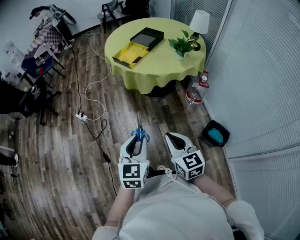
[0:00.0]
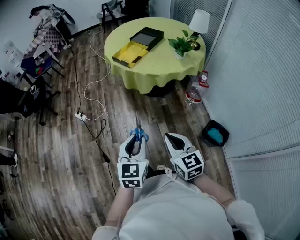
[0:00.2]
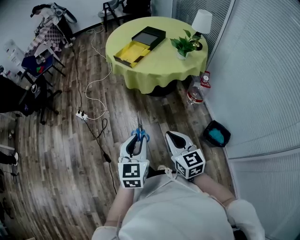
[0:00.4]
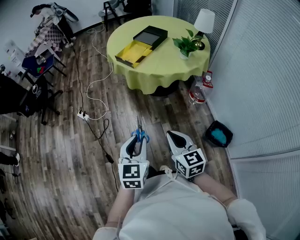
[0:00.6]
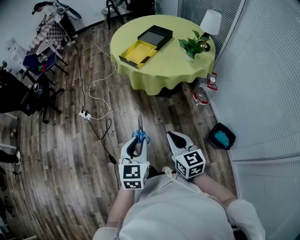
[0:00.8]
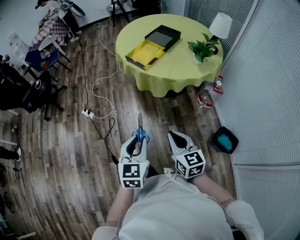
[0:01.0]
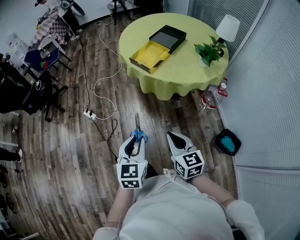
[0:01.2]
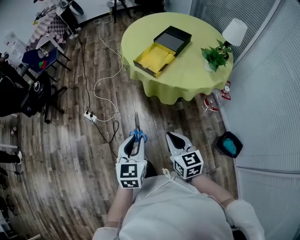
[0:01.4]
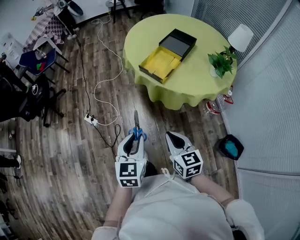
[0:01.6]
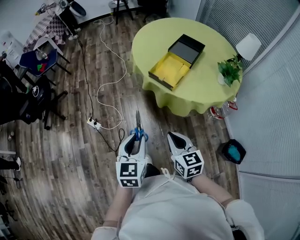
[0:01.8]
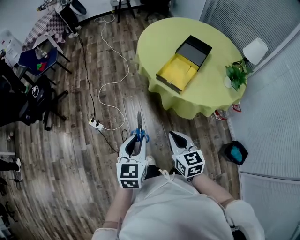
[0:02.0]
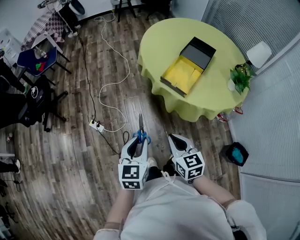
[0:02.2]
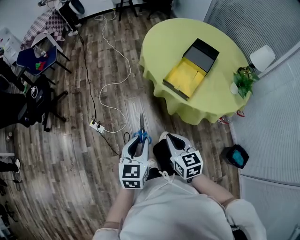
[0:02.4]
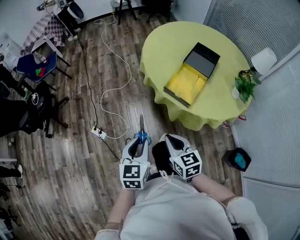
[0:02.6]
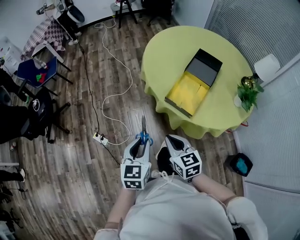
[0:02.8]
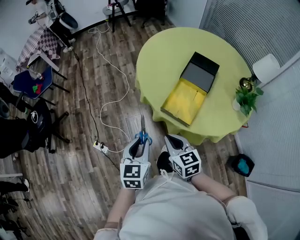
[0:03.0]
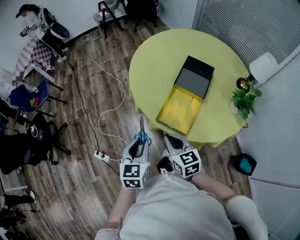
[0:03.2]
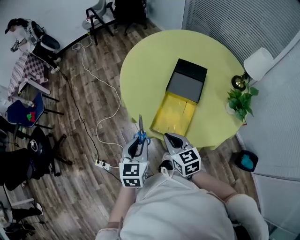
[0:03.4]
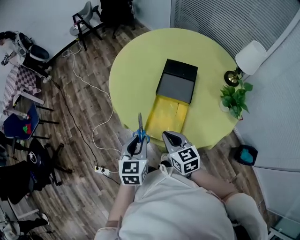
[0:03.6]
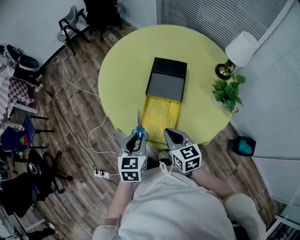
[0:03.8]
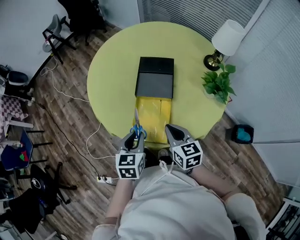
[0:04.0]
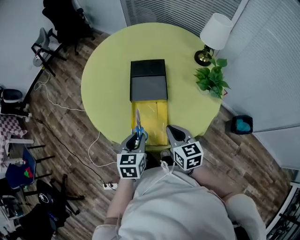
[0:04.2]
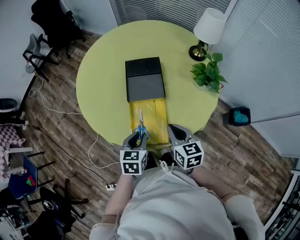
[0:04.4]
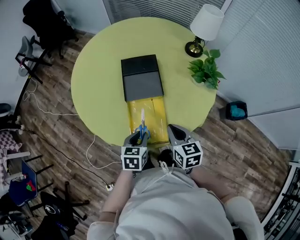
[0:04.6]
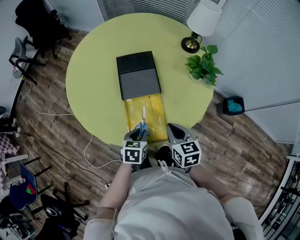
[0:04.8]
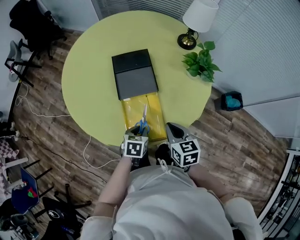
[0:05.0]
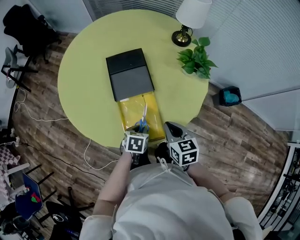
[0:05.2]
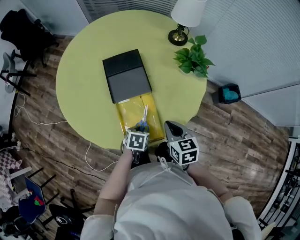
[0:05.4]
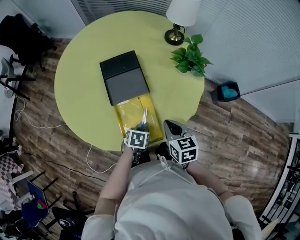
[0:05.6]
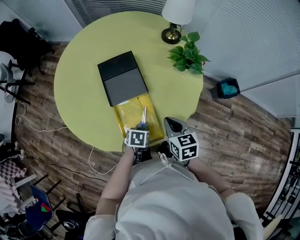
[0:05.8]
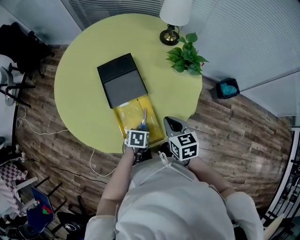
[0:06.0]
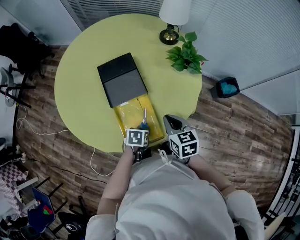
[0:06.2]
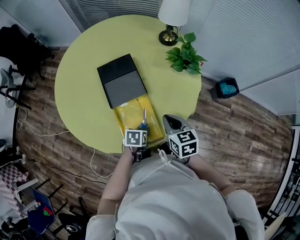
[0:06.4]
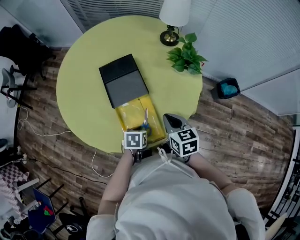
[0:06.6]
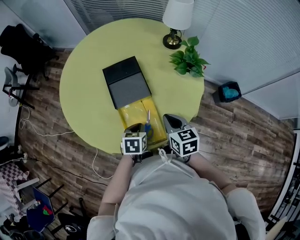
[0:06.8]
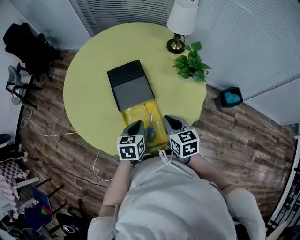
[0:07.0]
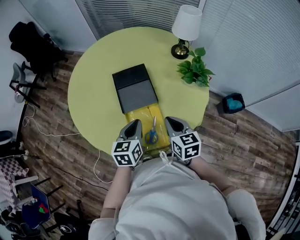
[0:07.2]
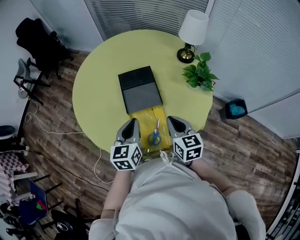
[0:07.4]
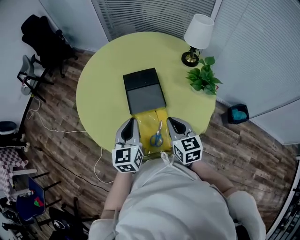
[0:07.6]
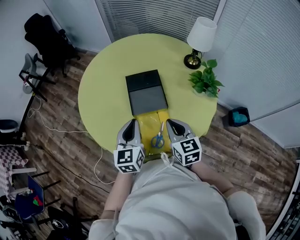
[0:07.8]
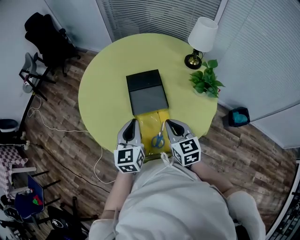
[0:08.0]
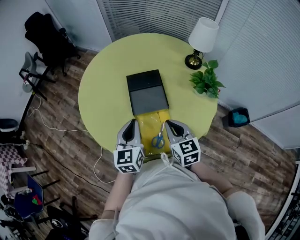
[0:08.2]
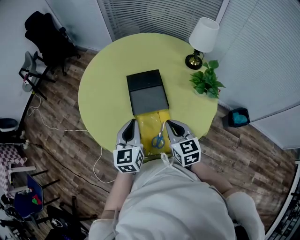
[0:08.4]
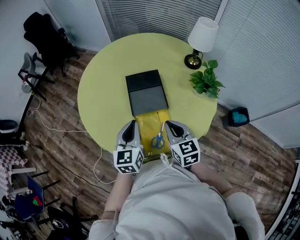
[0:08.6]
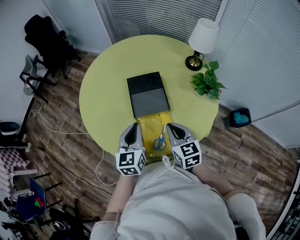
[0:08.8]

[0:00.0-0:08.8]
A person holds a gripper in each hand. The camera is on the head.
0:00.0 to 0:01.4: Both grippers move forward and to the left, approximately 25 cm.
0:01.4 to 0:03.0: The two grippers travel together, forward, roughly 40 cm.
0:03.0 to 0:04.4: The right gripper moves some 25 cm, and changes its angle by roughly 40 degrees, while the left gripper ends up approximately 30 cm from where it was, and rotates about 40 degrees.
0:04.4 to 0:05.8: The right gripper changes place by roughly 5 cm. Meanwhile the left gripper moves downward, approximately 15 cm, and swivels some 40 degrees.
0:05.8 to 0:07.4: The right gripper heads upward, covering some 5 cm. Meanwhile the left gripper is displaced upward by about 25 cm, and tips its fingers upward by approximately 50 degrees.
0:07.4 to 0:08.8: The grippers move only a little.

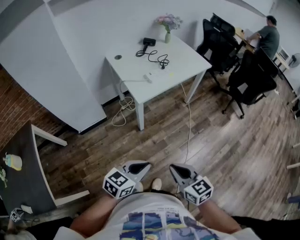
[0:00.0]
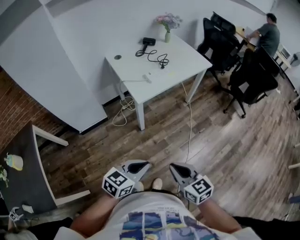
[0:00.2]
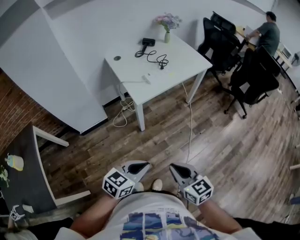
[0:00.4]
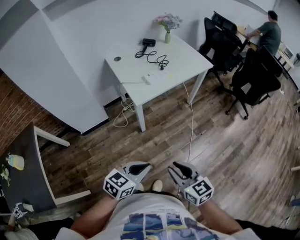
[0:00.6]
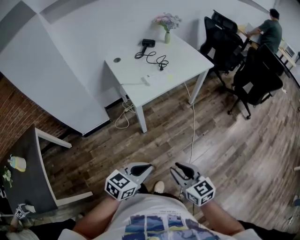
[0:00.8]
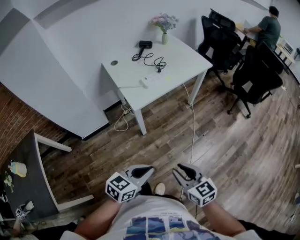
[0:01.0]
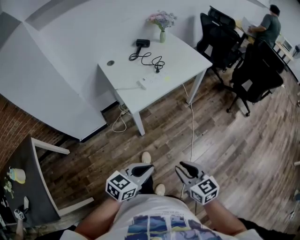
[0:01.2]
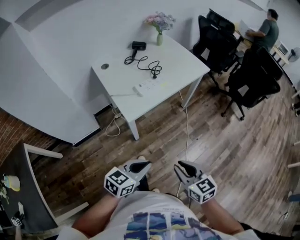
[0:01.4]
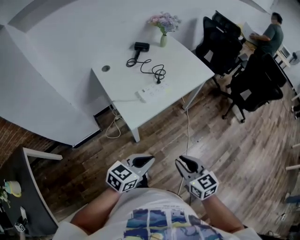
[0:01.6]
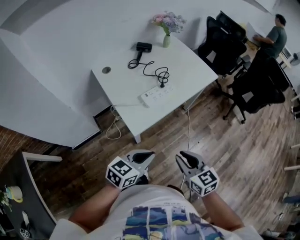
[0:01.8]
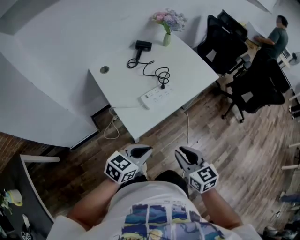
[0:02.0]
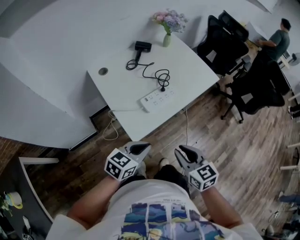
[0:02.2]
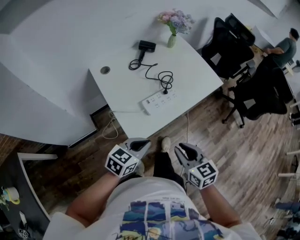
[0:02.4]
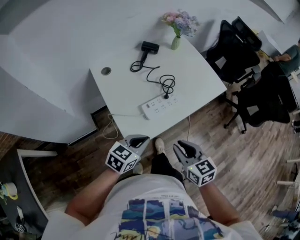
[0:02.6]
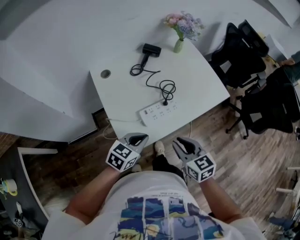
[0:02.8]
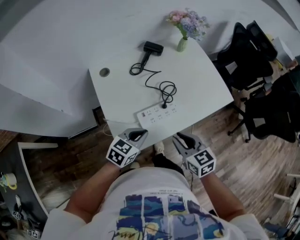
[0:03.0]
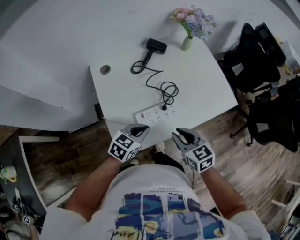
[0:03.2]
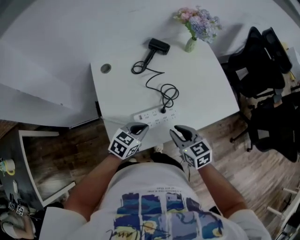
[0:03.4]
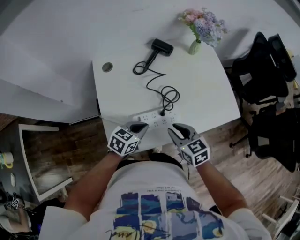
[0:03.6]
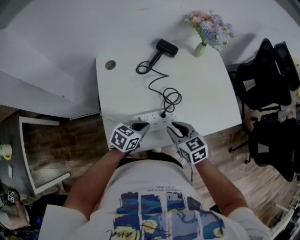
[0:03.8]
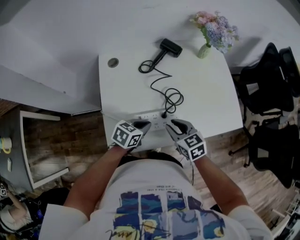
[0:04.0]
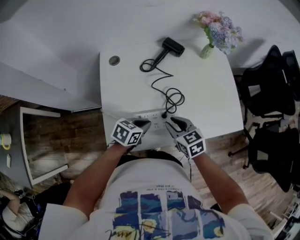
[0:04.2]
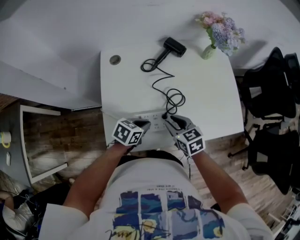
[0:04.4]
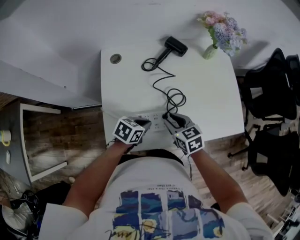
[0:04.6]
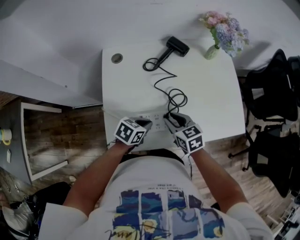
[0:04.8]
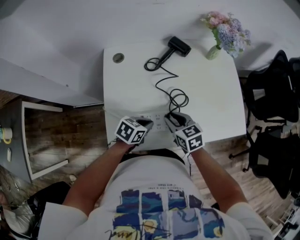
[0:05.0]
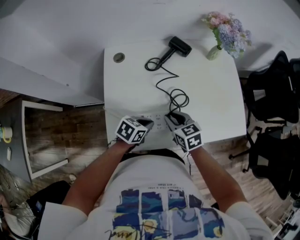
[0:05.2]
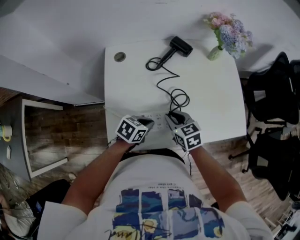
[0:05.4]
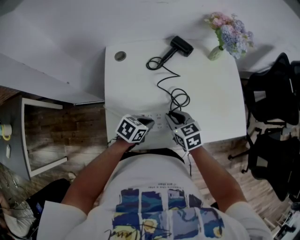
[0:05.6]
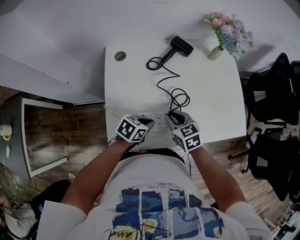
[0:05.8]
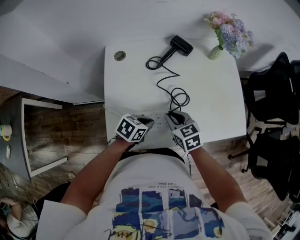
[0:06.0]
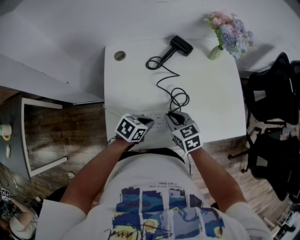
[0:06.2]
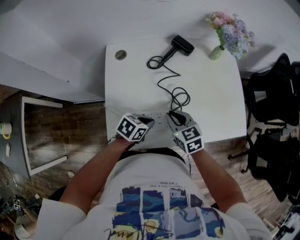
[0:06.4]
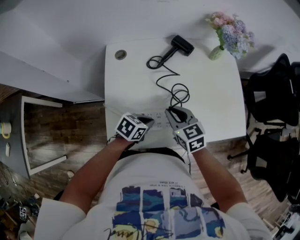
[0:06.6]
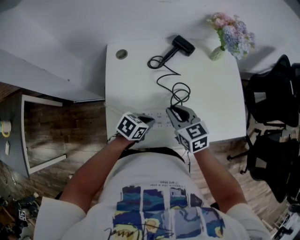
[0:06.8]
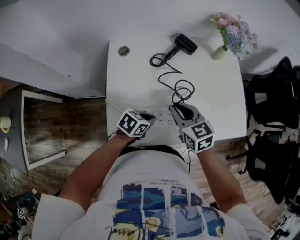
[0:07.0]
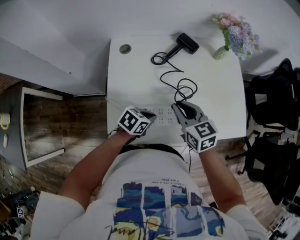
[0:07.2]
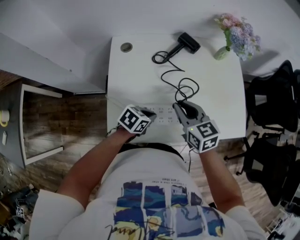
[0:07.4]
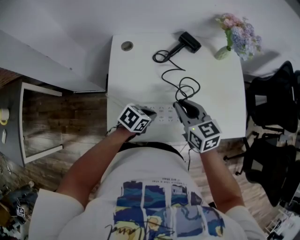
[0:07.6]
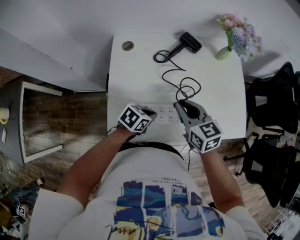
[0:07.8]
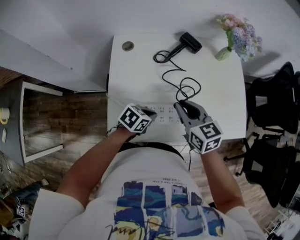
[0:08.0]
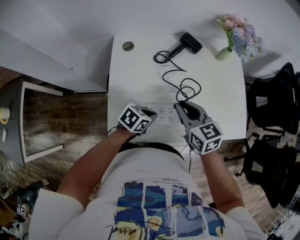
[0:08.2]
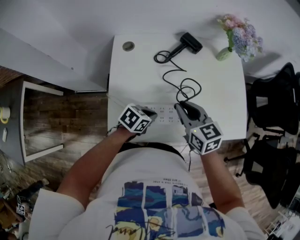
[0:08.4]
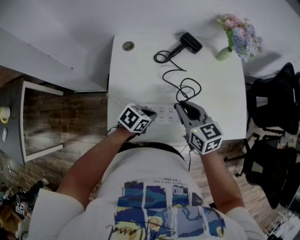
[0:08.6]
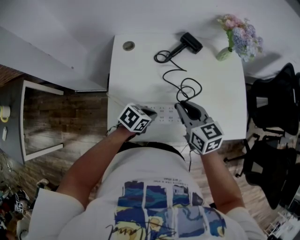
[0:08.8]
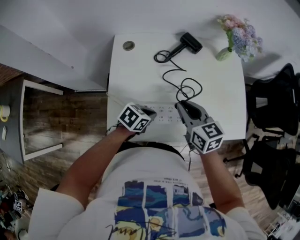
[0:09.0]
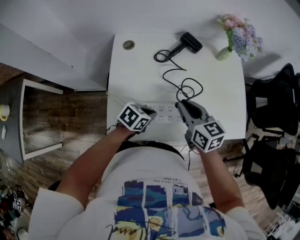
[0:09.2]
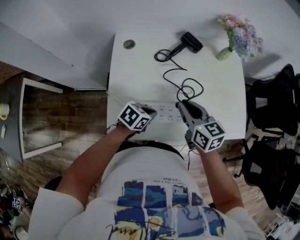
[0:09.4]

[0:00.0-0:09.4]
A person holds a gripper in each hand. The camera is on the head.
0:00.0 to 0:01.6: The two grippers go approximately 25 cm forward.
0:01.6 to 0:03.2: Both grippers move forward, approximately 40 cm. The left gripper rotates about 20 degrees.
0:03.2 to 0:04.8: The left gripper is displaced downward and forward by approximately 10 cm, and changes its angle by roughly 30 degrees. The right gripper travels forward and downward by approximately 15 cm.
0:04.8 to 0:06.2: The grippers make only small movements.
0:06.2 to 0:07.8: The right gripper heads upward, covering approximately 10 cm.
0:07.8 to 0:09.4: The grippers make only small movements.

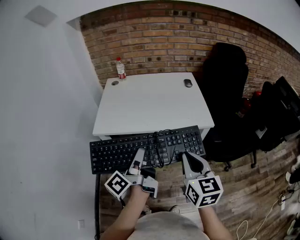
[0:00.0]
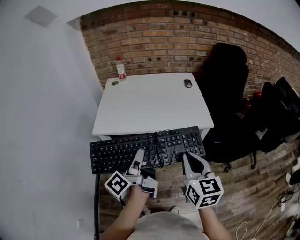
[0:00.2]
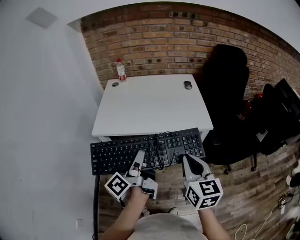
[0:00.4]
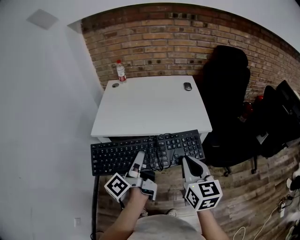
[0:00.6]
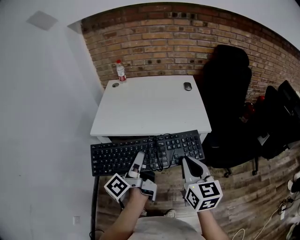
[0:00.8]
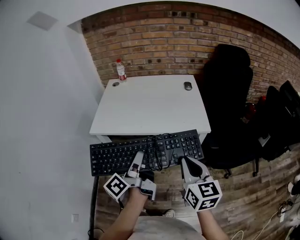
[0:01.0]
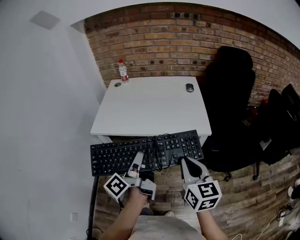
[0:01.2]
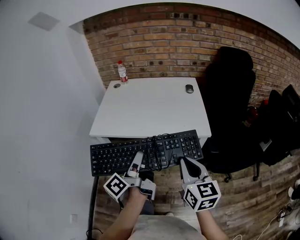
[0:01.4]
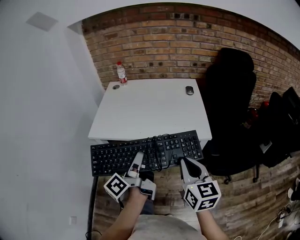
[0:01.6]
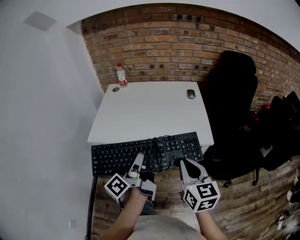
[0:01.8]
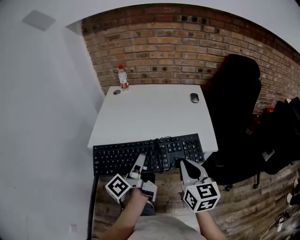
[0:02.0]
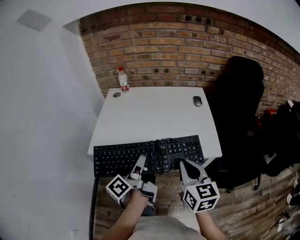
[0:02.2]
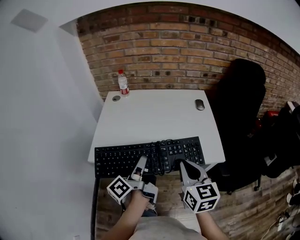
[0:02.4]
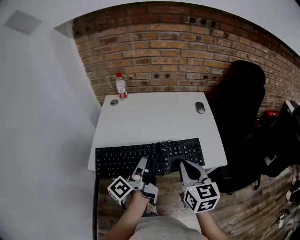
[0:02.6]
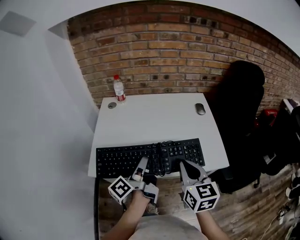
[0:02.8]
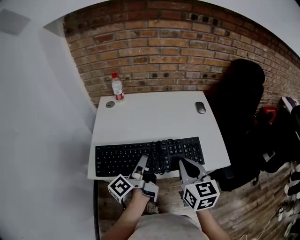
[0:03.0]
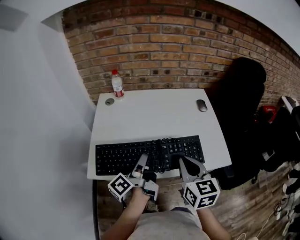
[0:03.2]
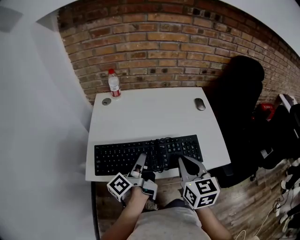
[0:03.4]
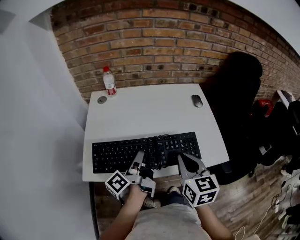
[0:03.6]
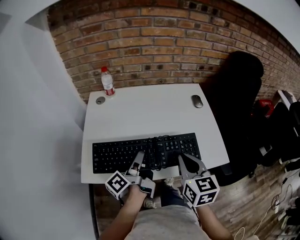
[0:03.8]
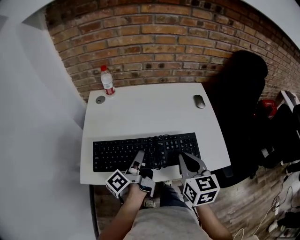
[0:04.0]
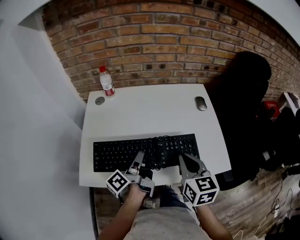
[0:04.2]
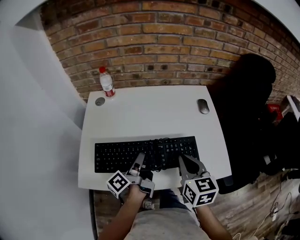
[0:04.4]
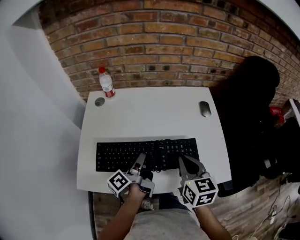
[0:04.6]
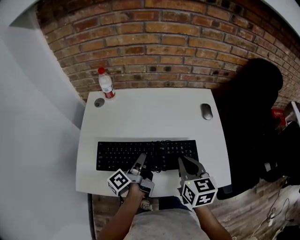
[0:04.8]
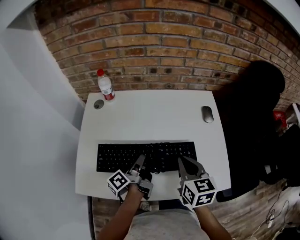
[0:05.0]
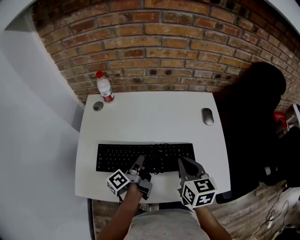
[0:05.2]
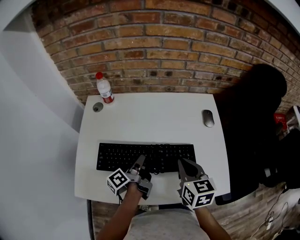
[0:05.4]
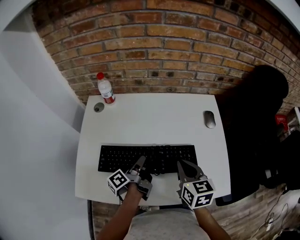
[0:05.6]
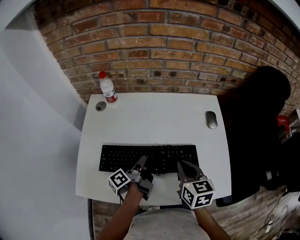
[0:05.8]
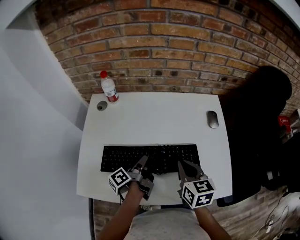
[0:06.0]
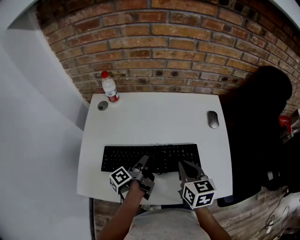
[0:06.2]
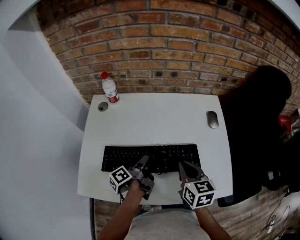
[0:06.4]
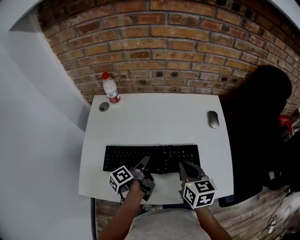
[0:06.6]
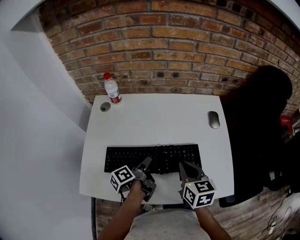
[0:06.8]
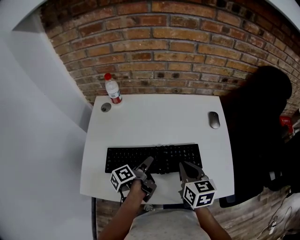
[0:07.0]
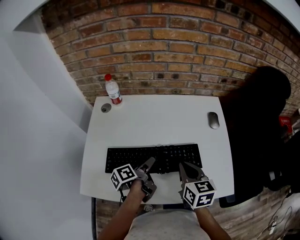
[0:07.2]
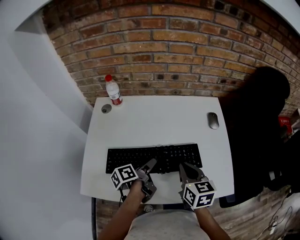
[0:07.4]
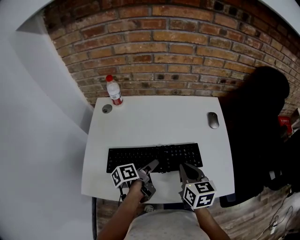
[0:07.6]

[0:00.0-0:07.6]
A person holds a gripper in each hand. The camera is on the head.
0:00.0 to 0:01.6: The right gripper moves about 10 cm.
0:01.6 to 0:03.0: The right gripper ends up approximately 30 cm from where it was.
0:03.0 to 0:04.6: The right gripper shifts by some 15 cm.
0:04.6 to 0:06.0: The right gripper shifts by roughly 5 cm.
